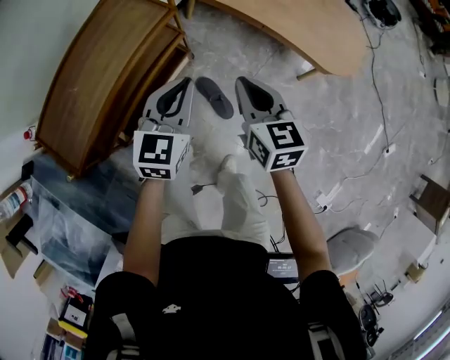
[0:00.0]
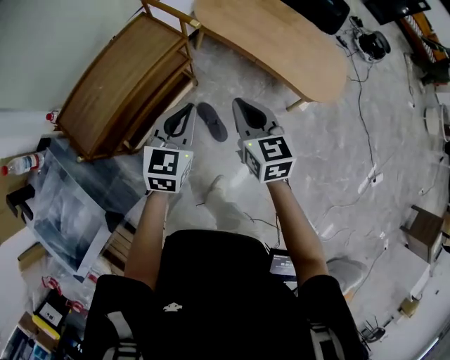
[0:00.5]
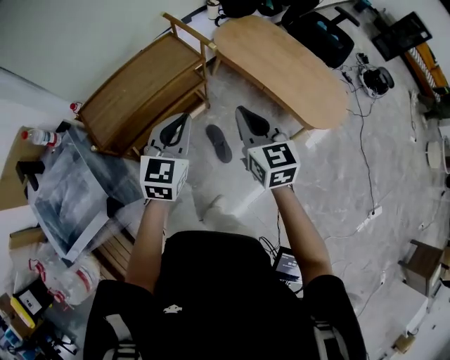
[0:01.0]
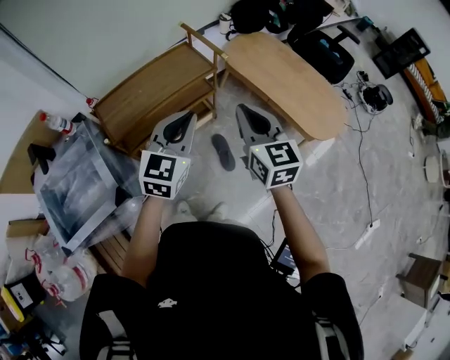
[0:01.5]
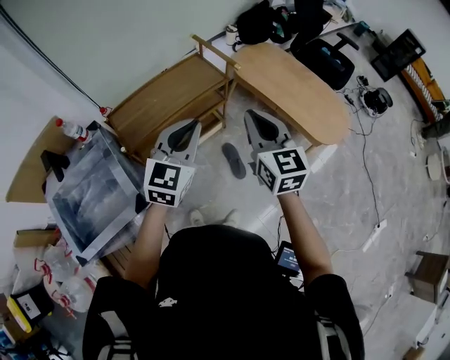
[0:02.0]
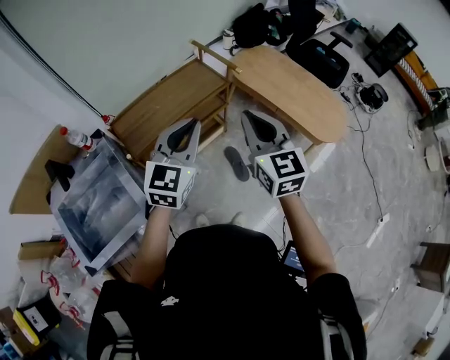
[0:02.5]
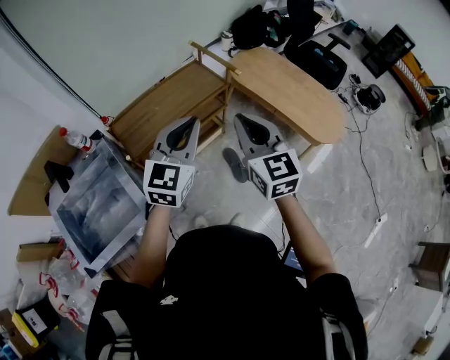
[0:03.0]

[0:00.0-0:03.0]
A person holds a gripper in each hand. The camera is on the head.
0:00.0 to 0:01.5: The two grippers go approximately 30 cm upward and backward. The right gripper swivels some 30 degrees.
0:01.5 to 0:03.0: Both grippers move to the left and upward, roughly 10 cm.

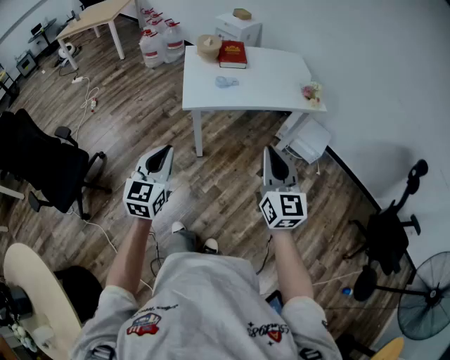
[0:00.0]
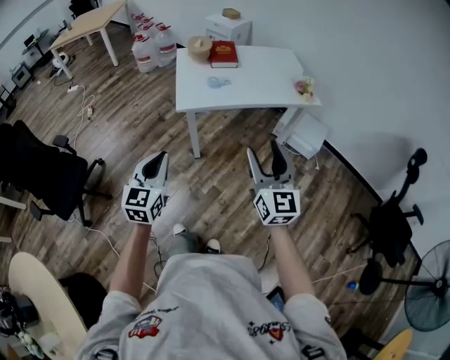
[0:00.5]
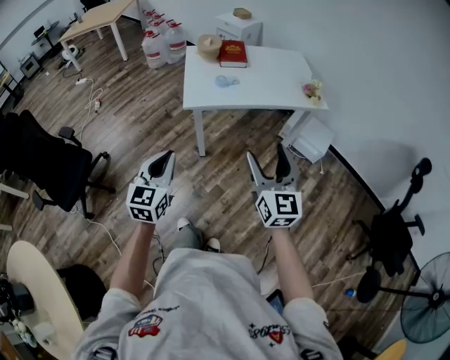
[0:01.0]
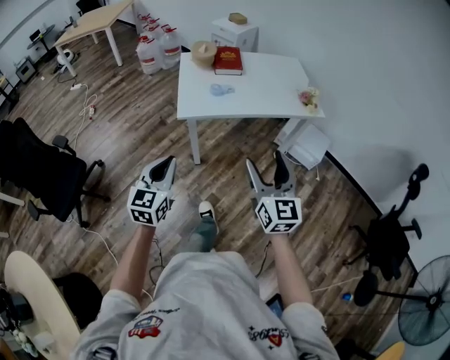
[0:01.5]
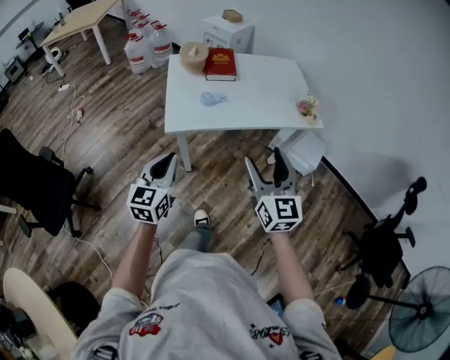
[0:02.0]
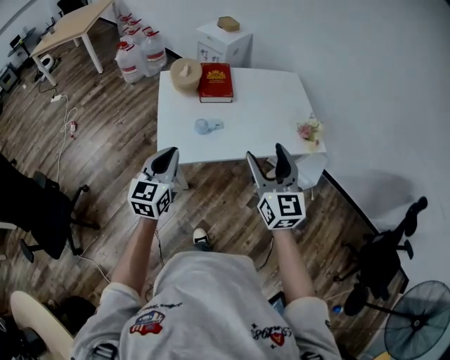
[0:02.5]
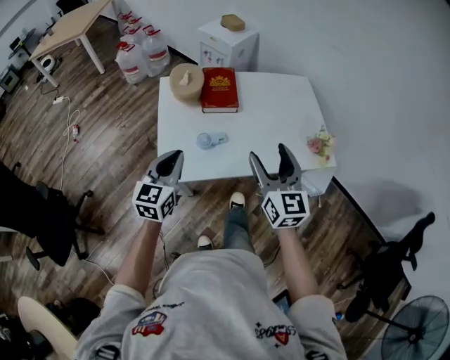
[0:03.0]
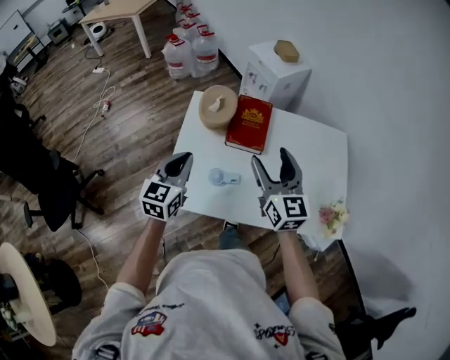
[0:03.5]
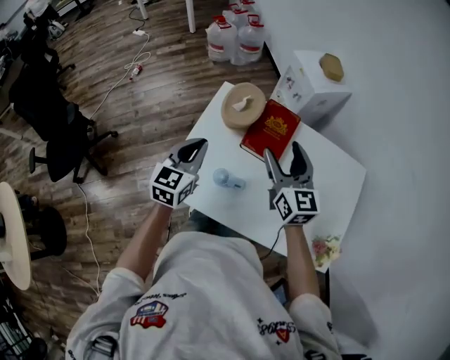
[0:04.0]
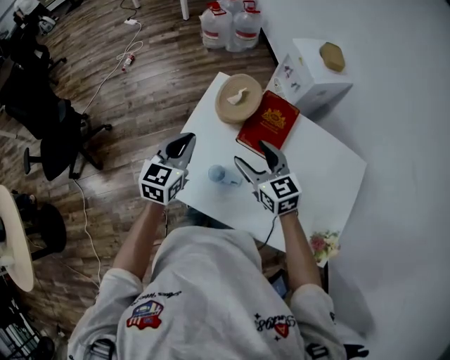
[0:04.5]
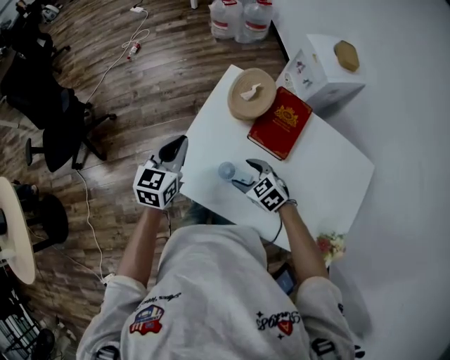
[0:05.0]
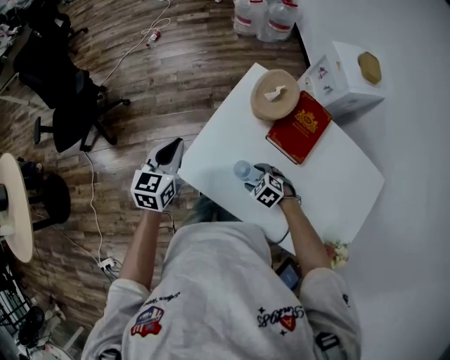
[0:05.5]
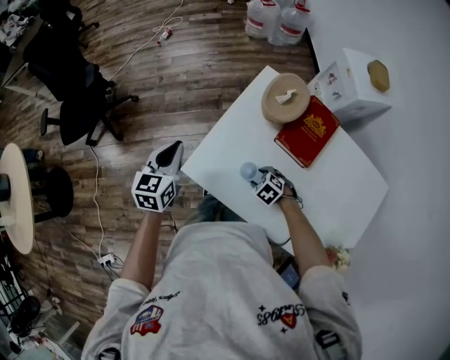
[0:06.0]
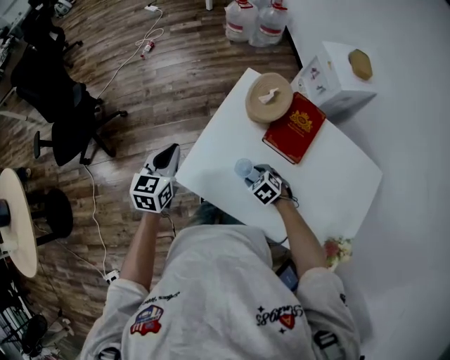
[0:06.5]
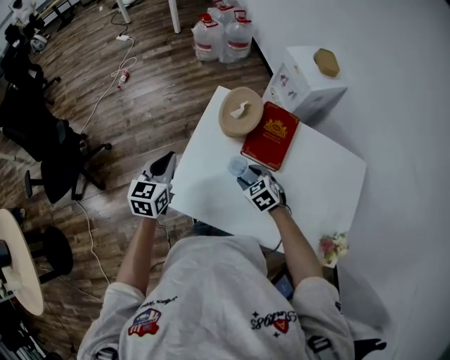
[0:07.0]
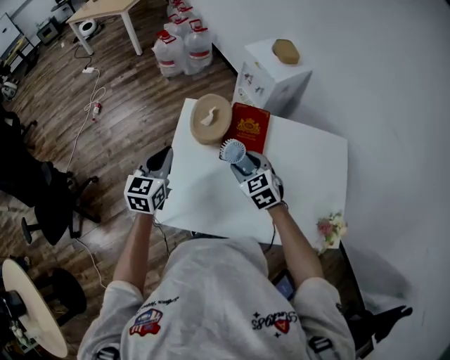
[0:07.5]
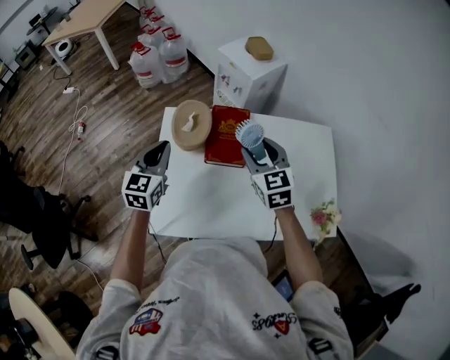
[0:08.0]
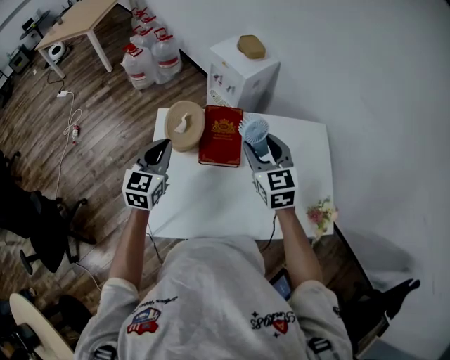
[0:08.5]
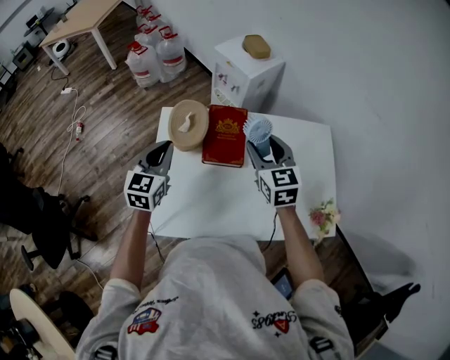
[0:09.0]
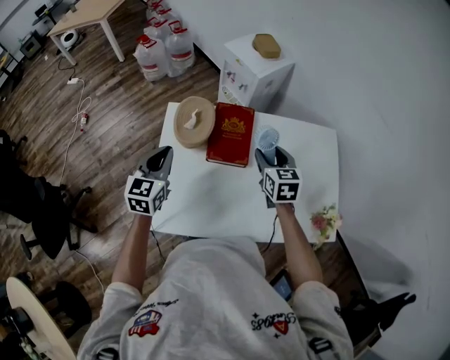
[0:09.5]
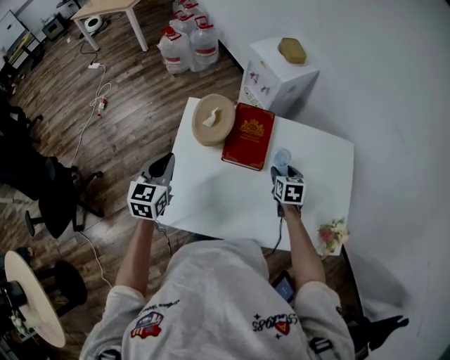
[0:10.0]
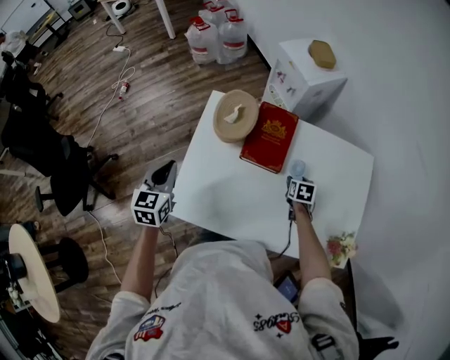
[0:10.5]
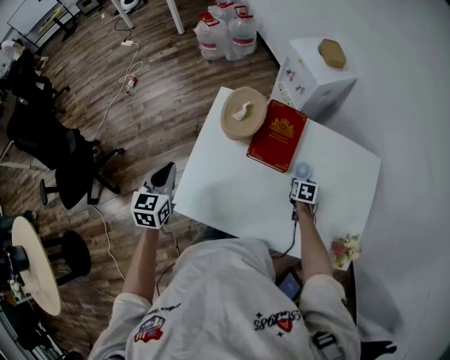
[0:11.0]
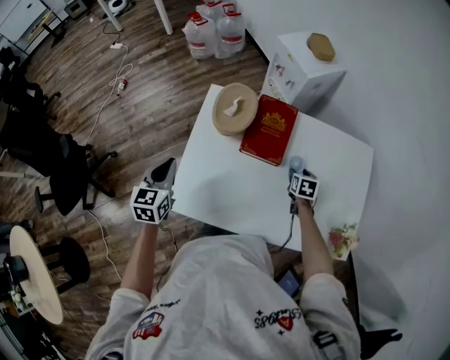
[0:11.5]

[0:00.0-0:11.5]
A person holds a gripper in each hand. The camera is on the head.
0:00.0 to 0:02.0: The two grippers go some 20 cm forward. The right gripper opens.
0:02.0 to 0:04.0: The two grippers travel together, about 60 cm. The right gripper changes its angle by approximately 30 degrees. Meanwhile the left gripper rotates about 20 degrees.
0:04.0 to 0:06.0: The right gripper goes about 40 cm downward, and angles its fingers downward, by roughly 60 degrees. The left gripper ends up some 20 cm from where it was, and rotates roughly 20 degrees.
0:06.0 to 0:07.5: The right gripper heads upward, covering some 25 cm, and angles its fingers upward, by approximately 30 degrees. The left gripper shifts by approximately 20 cm, and changes its angle by some 30 degrees.
0:07.5 to 0:09.5: The left gripper shifts about 5 cm to the right. The right gripper is displaced to the right by roughly 15 cm, and changes its angle by about 30 degrees.
0:09.5 to 0:11.5: The left gripper goes some 15 cm to the left, backward and downward. Meanwhile the right gripper shifts about 20 cm downward, and rotates roughly 20 degrees.

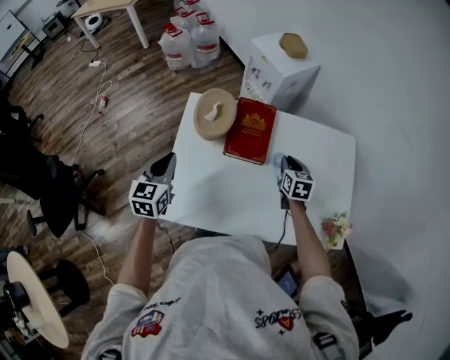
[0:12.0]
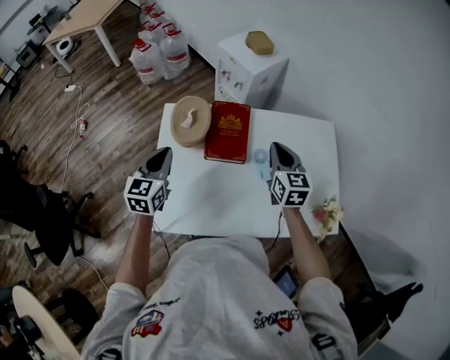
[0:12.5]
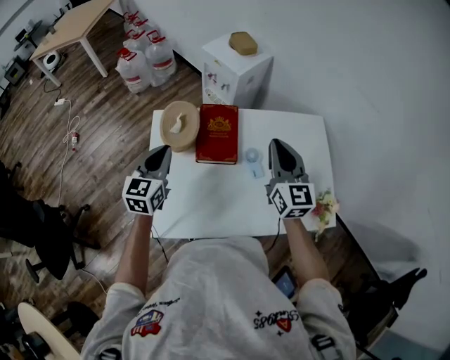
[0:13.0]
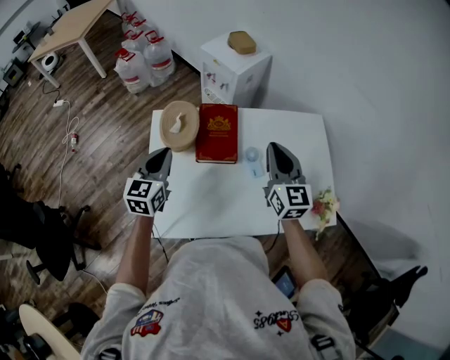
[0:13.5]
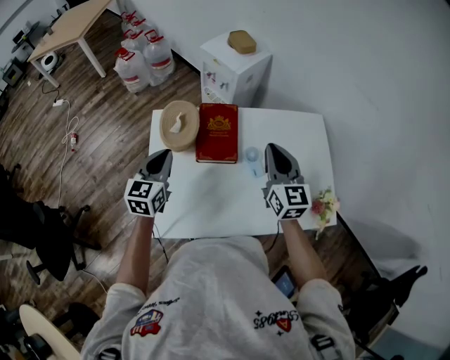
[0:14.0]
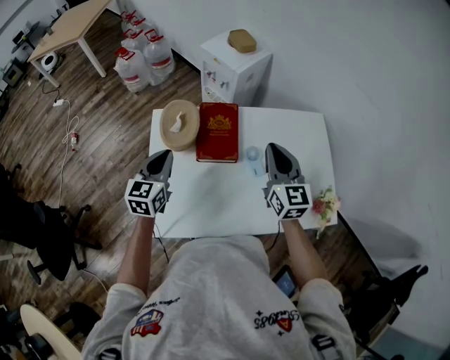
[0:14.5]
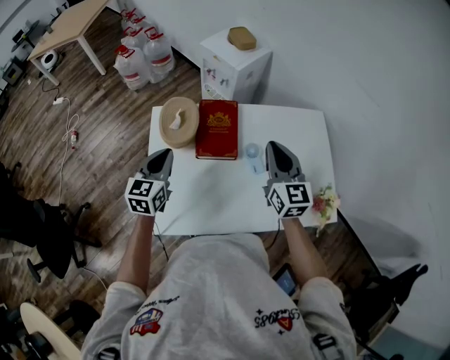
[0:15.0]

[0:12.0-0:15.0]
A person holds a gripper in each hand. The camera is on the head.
0:12.0 to 0:13.5: The left gripper is displaced to the right and forward by some 10 cm. Meanwhile the right gripper travels upward by about 20 cm, and points its fingers roughly 30 degrees further upward.
0:13.5 to 0:15.0: The grippers move only a little.

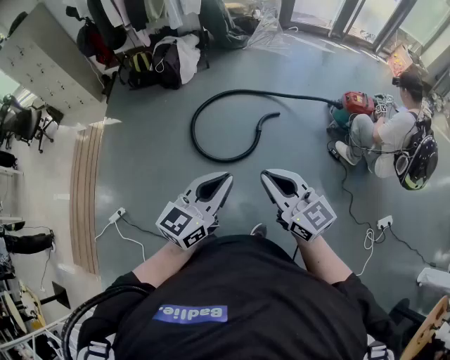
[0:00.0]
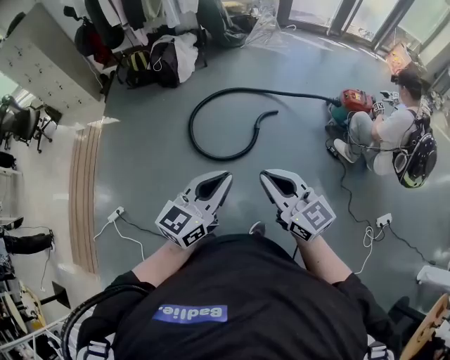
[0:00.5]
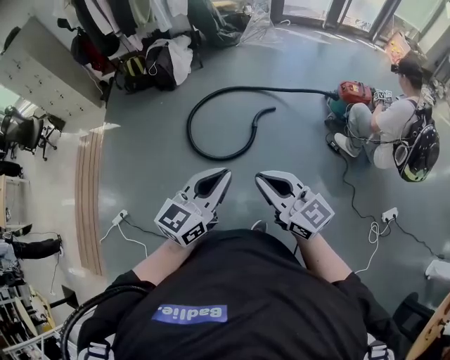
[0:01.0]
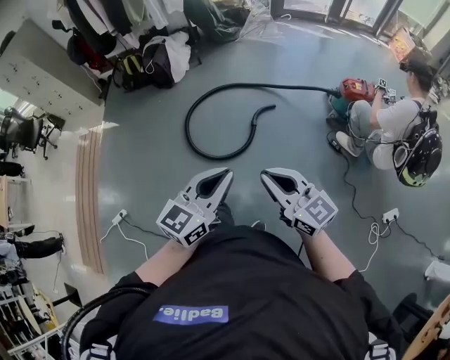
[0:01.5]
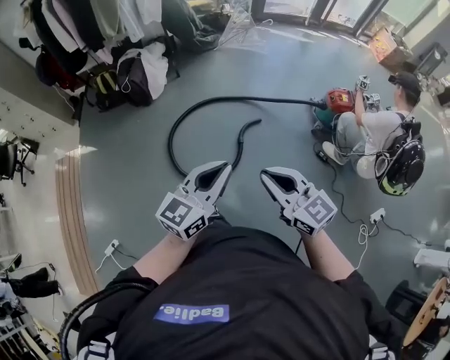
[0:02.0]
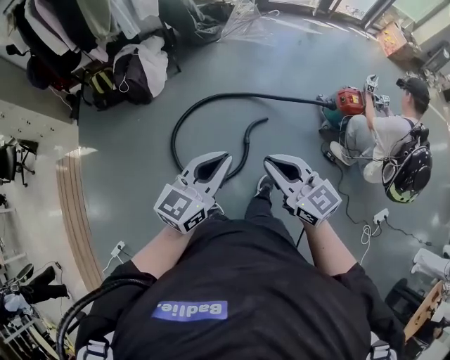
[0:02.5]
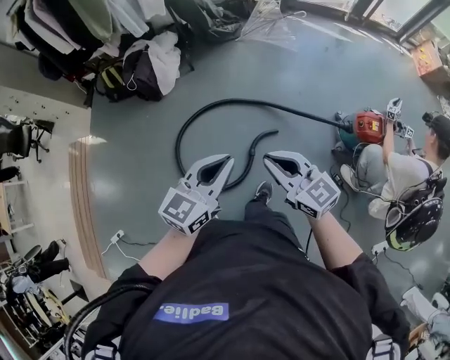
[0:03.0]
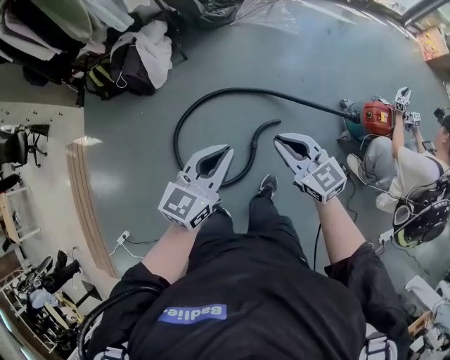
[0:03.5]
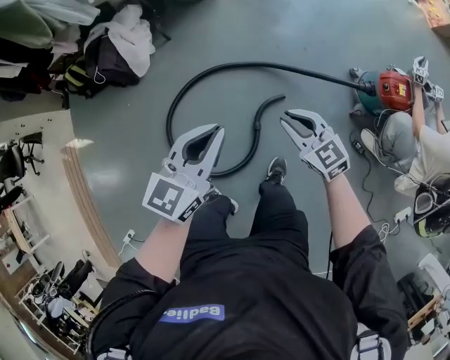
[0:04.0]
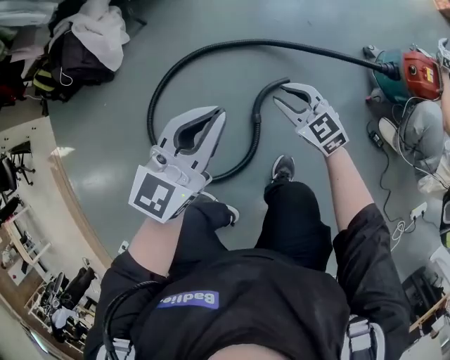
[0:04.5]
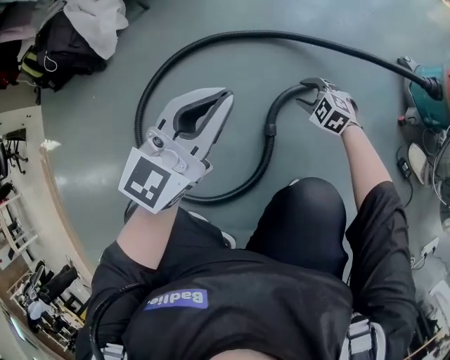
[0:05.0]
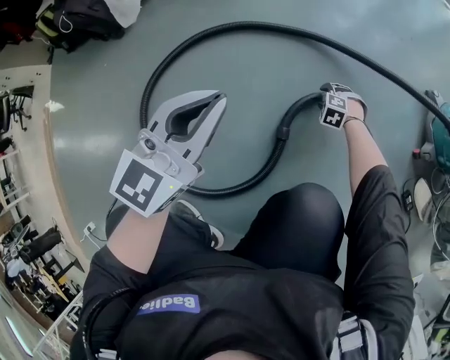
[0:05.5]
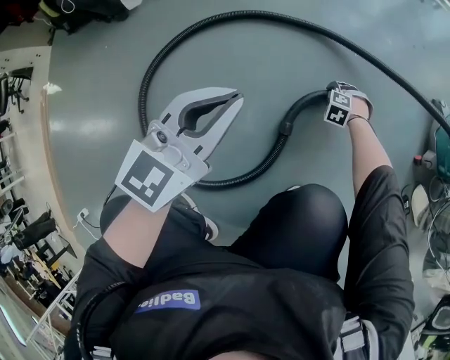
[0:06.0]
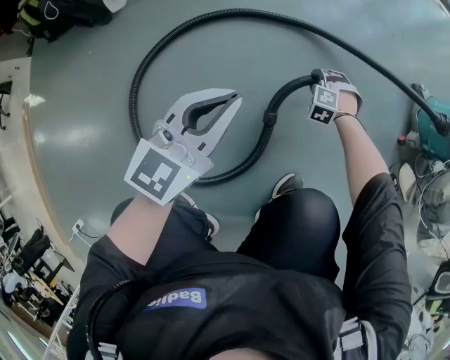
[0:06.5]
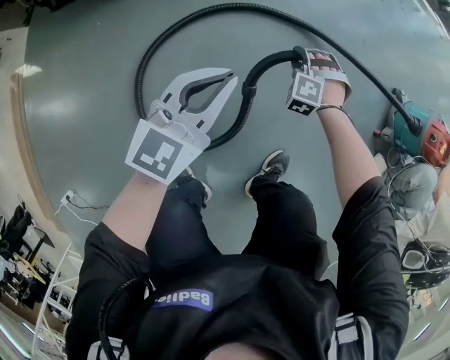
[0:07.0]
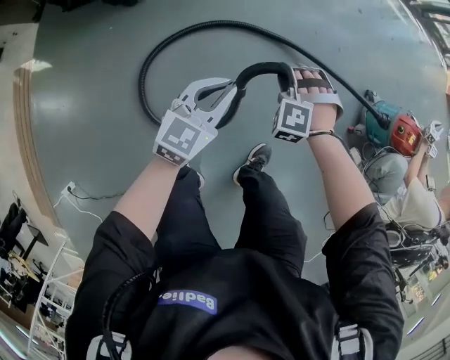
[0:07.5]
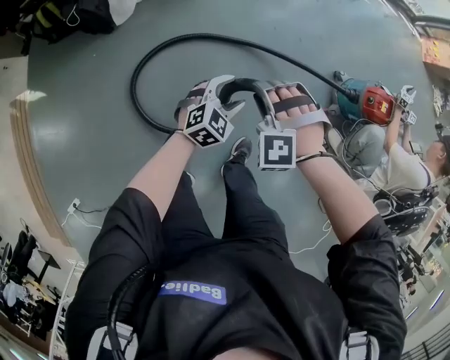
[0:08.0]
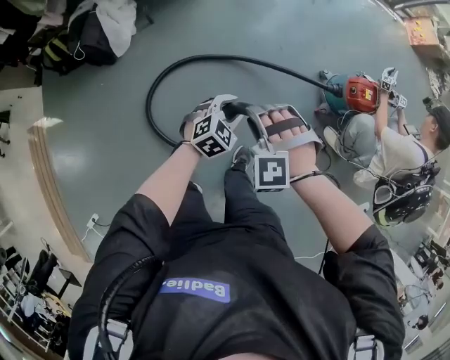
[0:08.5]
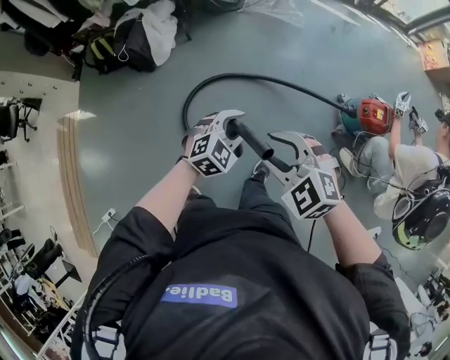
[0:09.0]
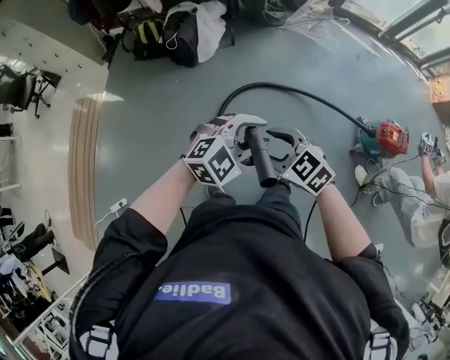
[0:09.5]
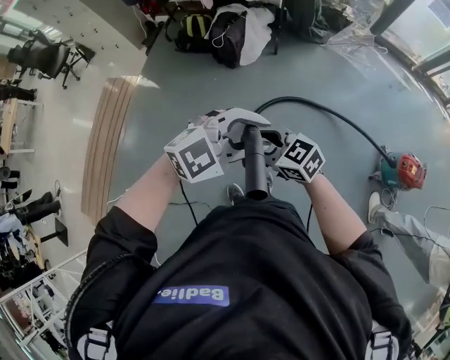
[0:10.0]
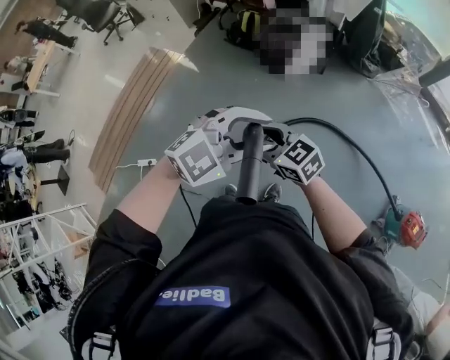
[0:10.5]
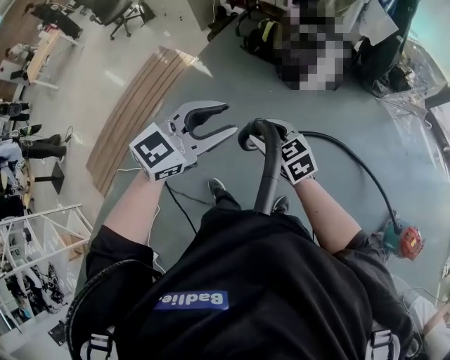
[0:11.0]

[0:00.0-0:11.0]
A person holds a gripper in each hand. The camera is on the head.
0:00.0 to 0:02.0: The two grippers go roughly 25 cm forward.
0:02.0 to 0:03.5: The left gripper shifts roughly 35 cm forward. The right gripper travels forward and downward by roughly 40 cm.
0:03.5 to 0:05.5: The left gripper moves downward, about 50 cm. The right gripper goes about 90 cm downward, angles its fingers downward, by about 60 degrees, and opens up.
0:05.5 to 0:07.5: The left gripper shifts some 15 cm upward; the right gripper goes approximately 50 cm upward, and turns by roughly 30 degrees.
0:07.5 to 0:09.0: The left gripper travels upward and to the right by roughly 30 cm, turns by some 40 degrees, and opens up, while the right gripper goes approximately 50 cm upward and backward, and turns by some 50 degrees.
0:09.0 to 0:11.0: The pair of grippers is taken about 70 cm. The right gripper rotates about 30 degrees. Meanwhile the left gripper swivels approximately 50 degrees.
